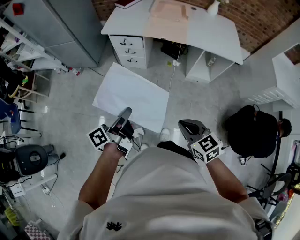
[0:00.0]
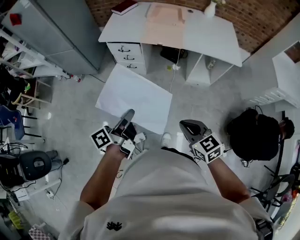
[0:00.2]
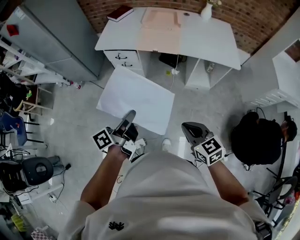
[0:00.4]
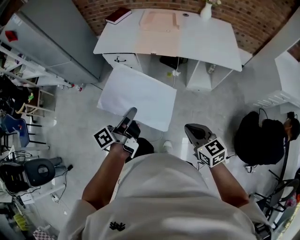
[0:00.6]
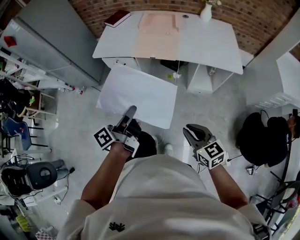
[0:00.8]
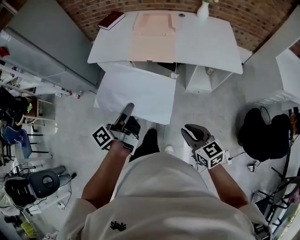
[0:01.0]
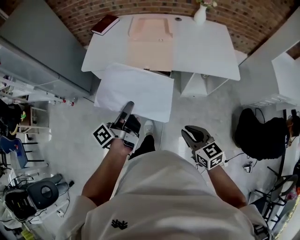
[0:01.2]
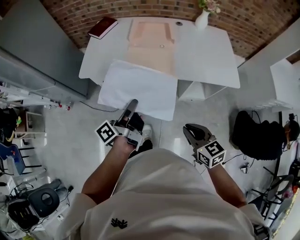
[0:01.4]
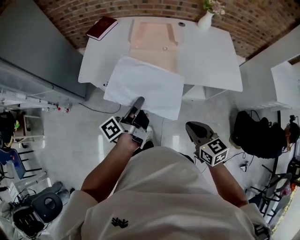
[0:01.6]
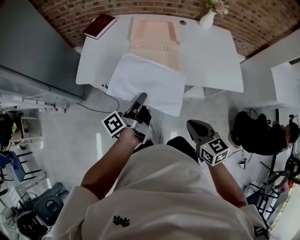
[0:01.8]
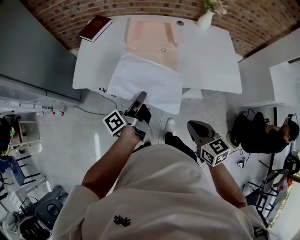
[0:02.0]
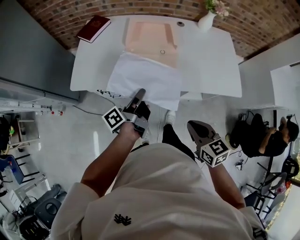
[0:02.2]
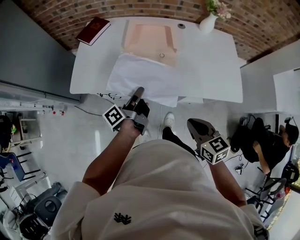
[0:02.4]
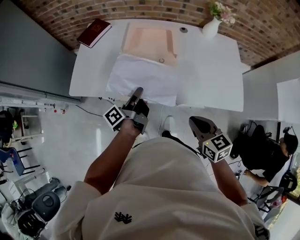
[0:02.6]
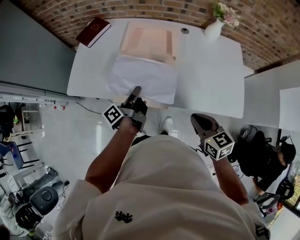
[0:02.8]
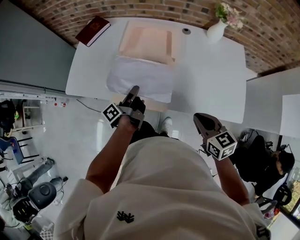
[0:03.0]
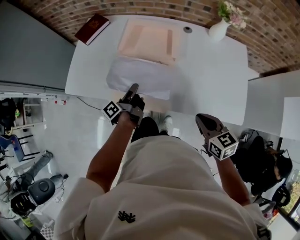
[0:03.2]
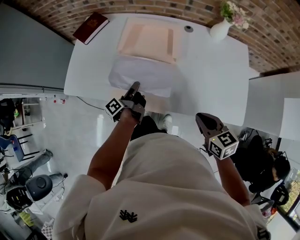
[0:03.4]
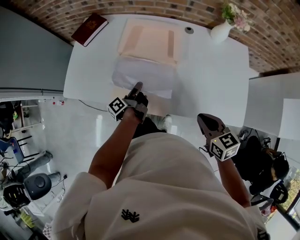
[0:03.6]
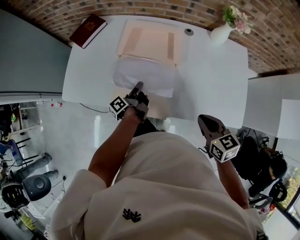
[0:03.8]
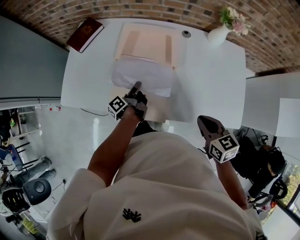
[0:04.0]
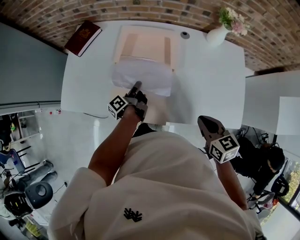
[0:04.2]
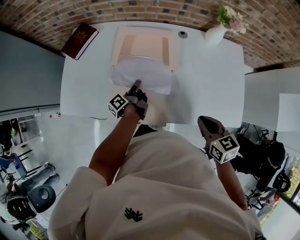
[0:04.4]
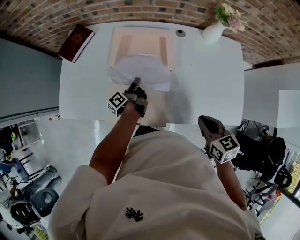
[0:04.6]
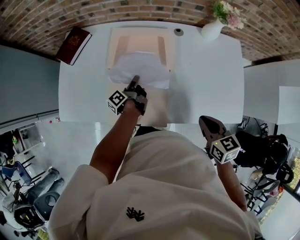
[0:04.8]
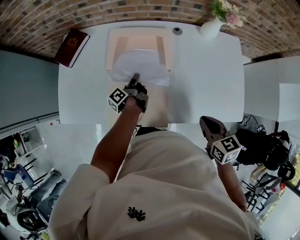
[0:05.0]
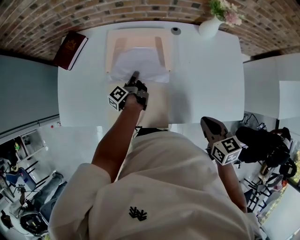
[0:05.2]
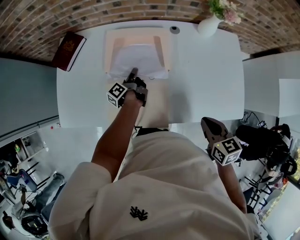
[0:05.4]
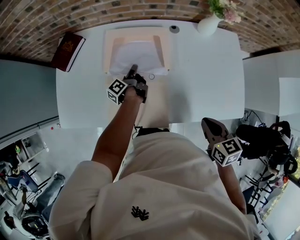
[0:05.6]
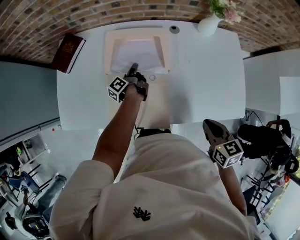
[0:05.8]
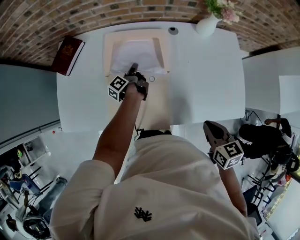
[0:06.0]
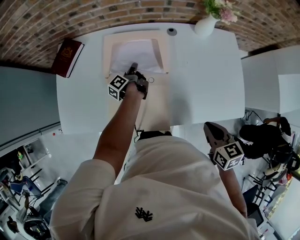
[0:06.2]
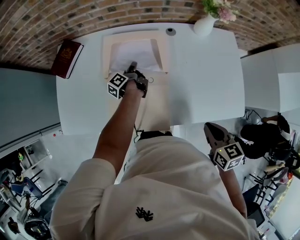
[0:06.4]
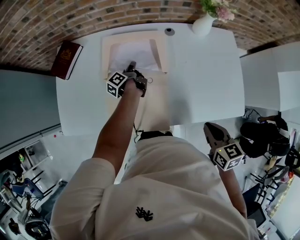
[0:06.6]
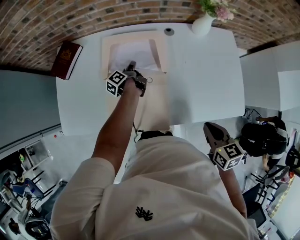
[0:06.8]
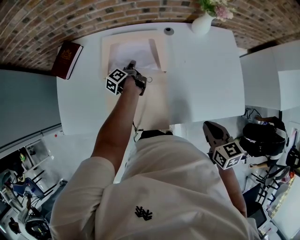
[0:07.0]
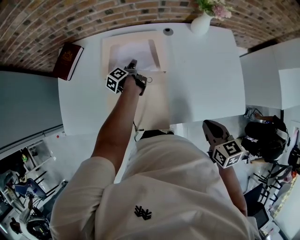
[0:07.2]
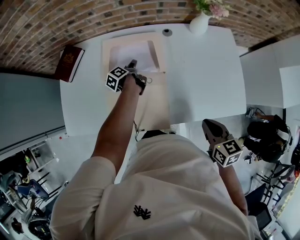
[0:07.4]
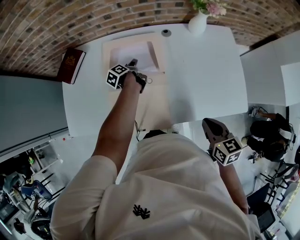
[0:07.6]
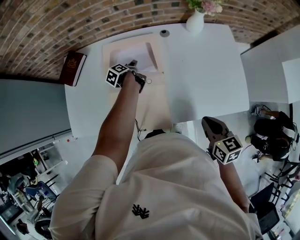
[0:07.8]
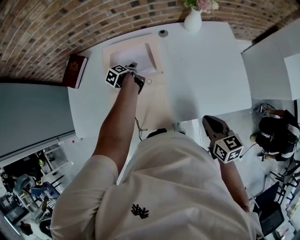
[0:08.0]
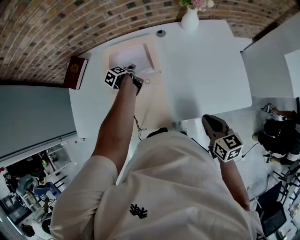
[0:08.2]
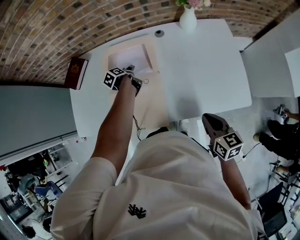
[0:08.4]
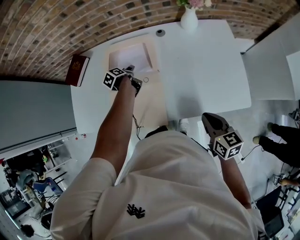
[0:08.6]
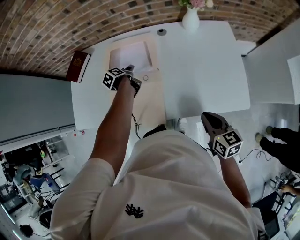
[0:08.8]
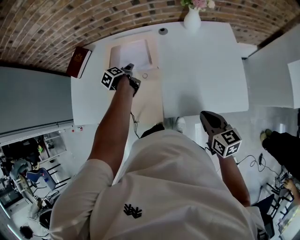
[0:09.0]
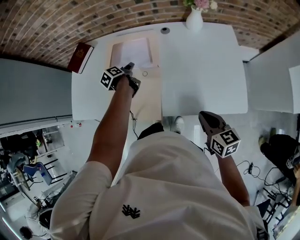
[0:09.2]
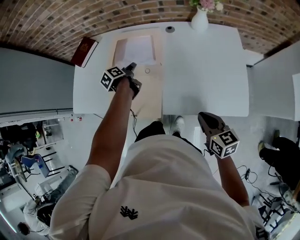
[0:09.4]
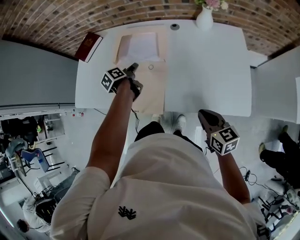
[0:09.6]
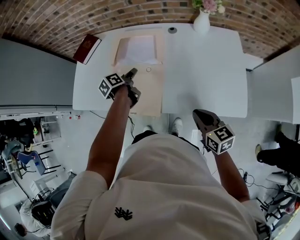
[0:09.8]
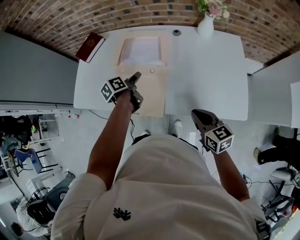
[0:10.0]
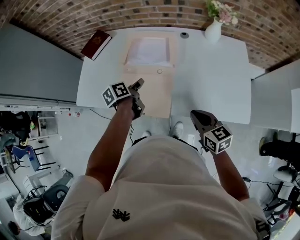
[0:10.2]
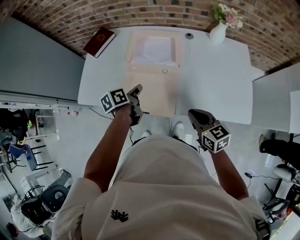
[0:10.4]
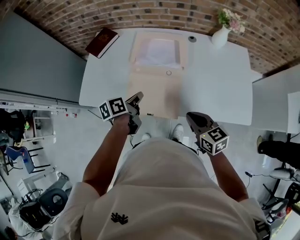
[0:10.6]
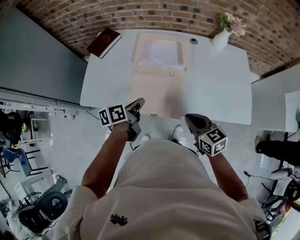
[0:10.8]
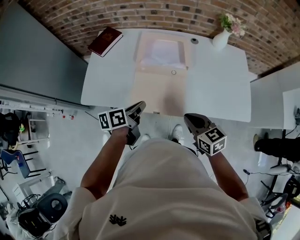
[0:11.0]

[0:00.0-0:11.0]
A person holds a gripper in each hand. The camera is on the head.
0:00.0 to 0:01.6: The right gripper moves about 40 cm.
0:01.6 to 0:03.2: The right gripper ends up approximately 35 cm from where it was.
0:03.2 to 0:04.8: The right gripper moves some 10 cm.
0:07.8 to 0:09.4: The right gripper changes place by some 10 cm.
0:09.4 to 0:11.0: The right gripper moves some 25 cm.

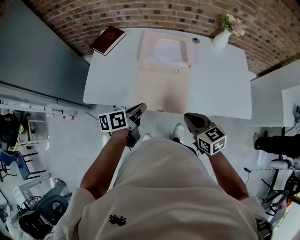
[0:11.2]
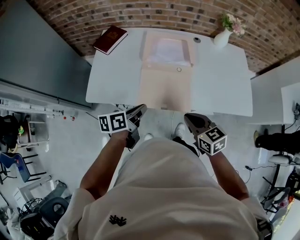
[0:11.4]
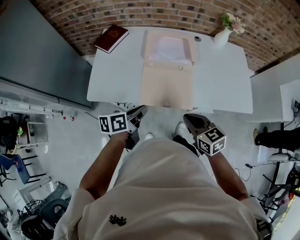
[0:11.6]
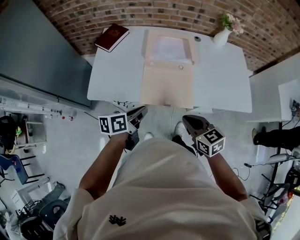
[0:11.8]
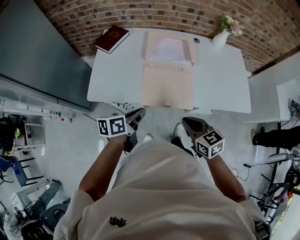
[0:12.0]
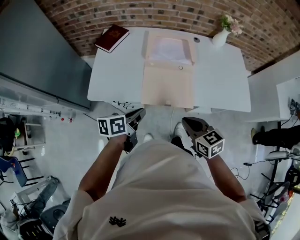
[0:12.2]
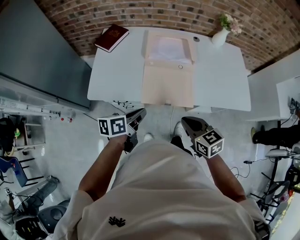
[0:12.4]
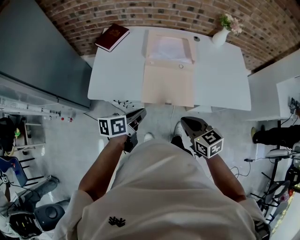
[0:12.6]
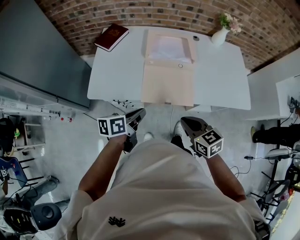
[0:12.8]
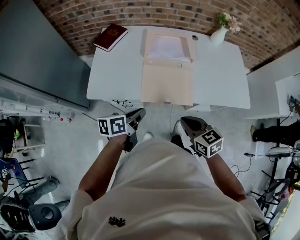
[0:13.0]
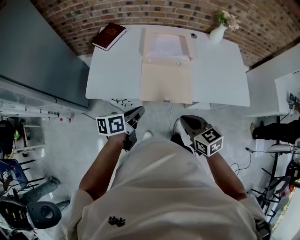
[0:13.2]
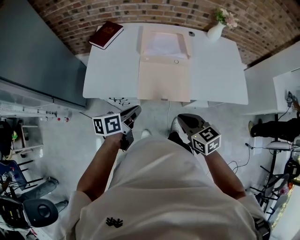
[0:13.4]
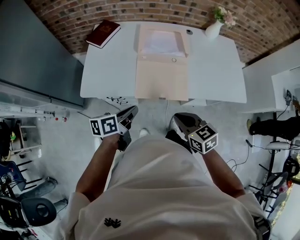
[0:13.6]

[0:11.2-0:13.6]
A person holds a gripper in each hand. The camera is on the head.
0:11.2 to 0:12.4: The right gripper moves some 10 cm.

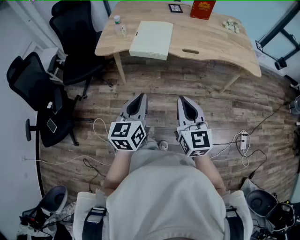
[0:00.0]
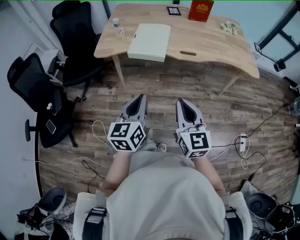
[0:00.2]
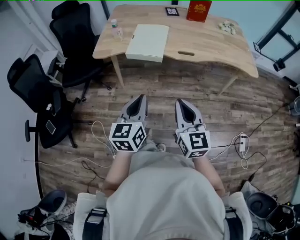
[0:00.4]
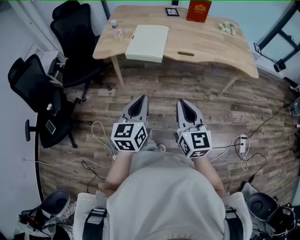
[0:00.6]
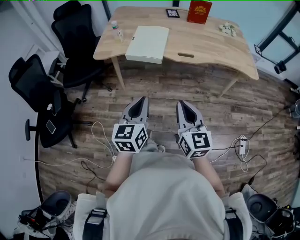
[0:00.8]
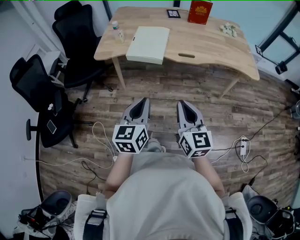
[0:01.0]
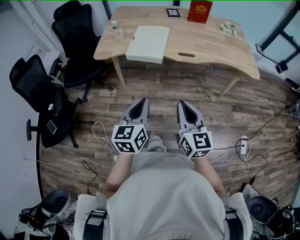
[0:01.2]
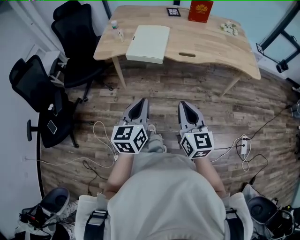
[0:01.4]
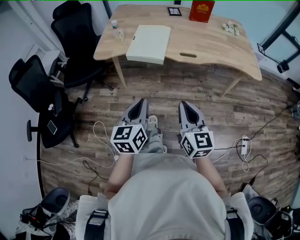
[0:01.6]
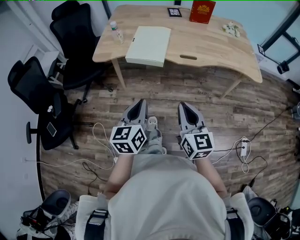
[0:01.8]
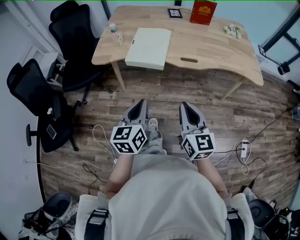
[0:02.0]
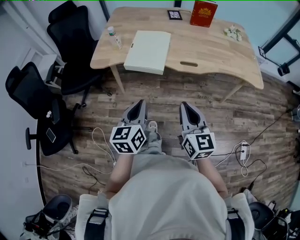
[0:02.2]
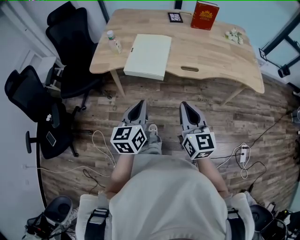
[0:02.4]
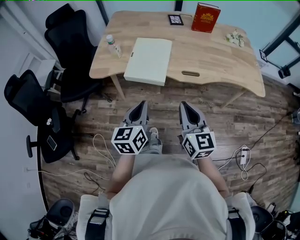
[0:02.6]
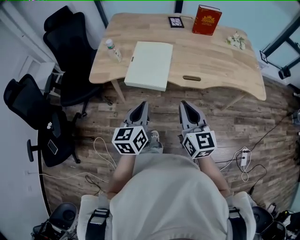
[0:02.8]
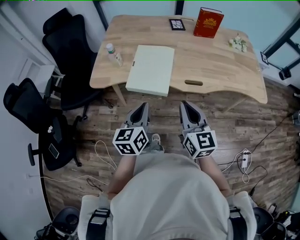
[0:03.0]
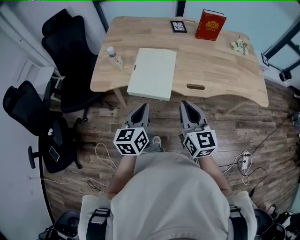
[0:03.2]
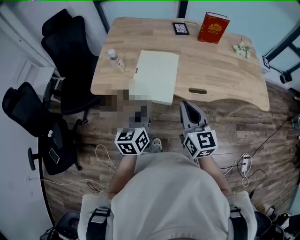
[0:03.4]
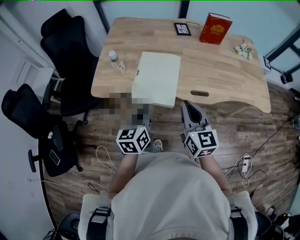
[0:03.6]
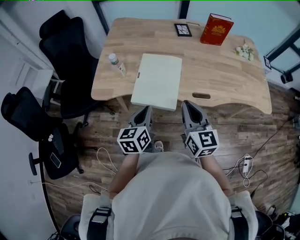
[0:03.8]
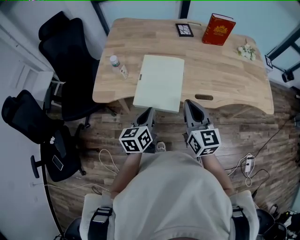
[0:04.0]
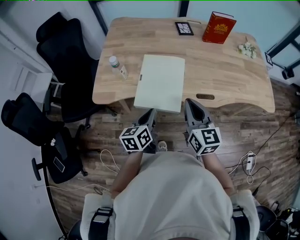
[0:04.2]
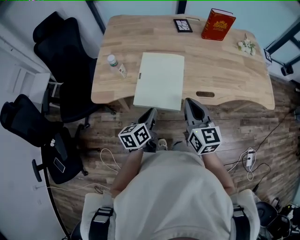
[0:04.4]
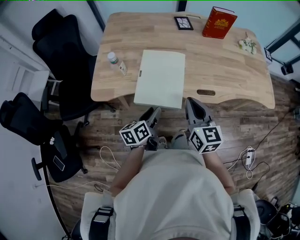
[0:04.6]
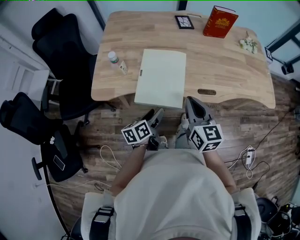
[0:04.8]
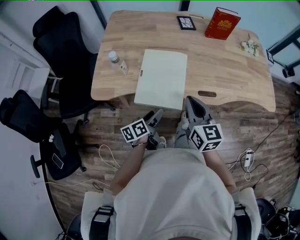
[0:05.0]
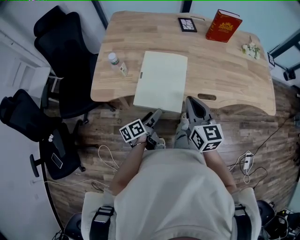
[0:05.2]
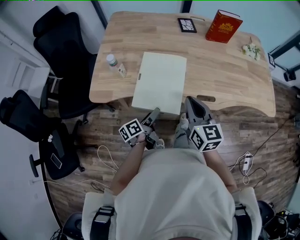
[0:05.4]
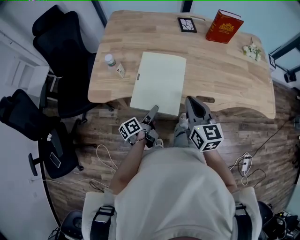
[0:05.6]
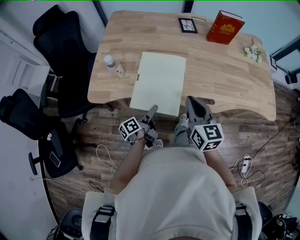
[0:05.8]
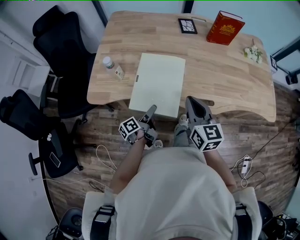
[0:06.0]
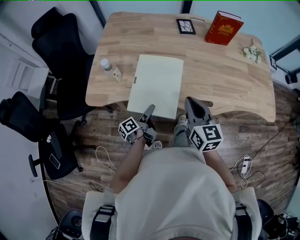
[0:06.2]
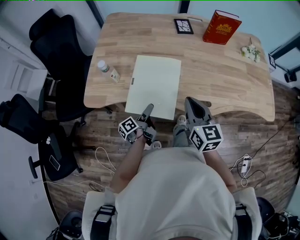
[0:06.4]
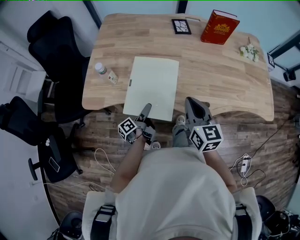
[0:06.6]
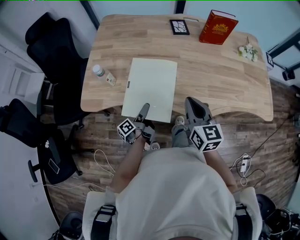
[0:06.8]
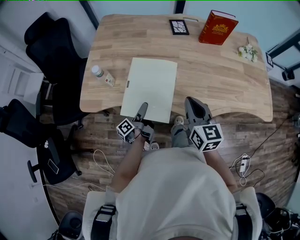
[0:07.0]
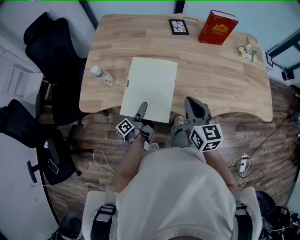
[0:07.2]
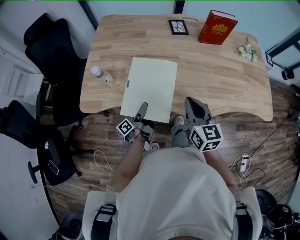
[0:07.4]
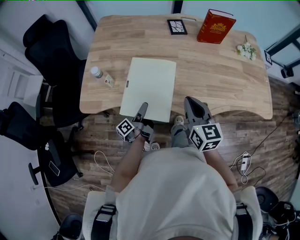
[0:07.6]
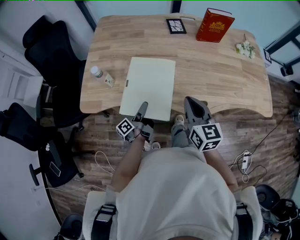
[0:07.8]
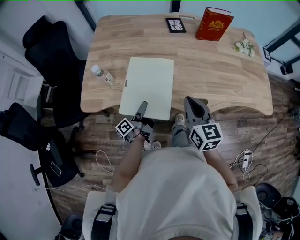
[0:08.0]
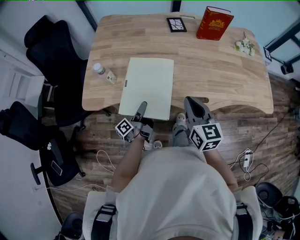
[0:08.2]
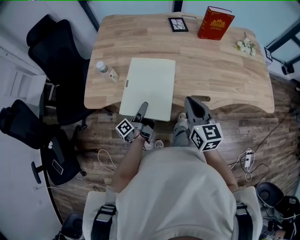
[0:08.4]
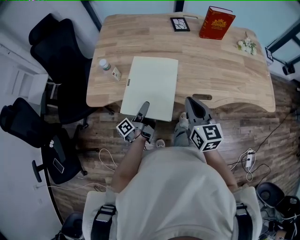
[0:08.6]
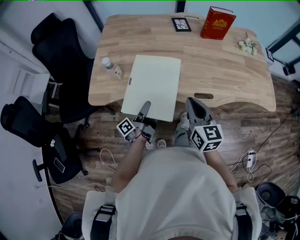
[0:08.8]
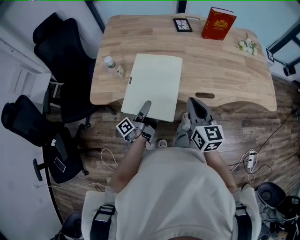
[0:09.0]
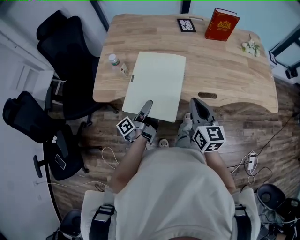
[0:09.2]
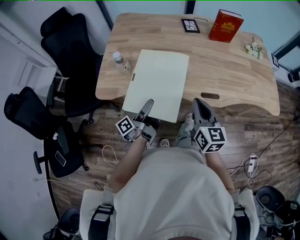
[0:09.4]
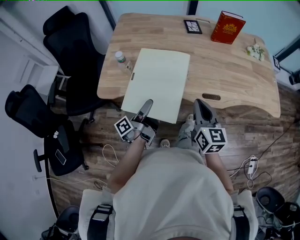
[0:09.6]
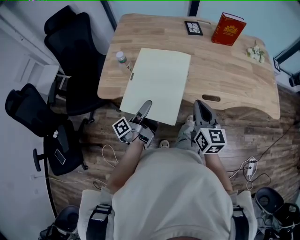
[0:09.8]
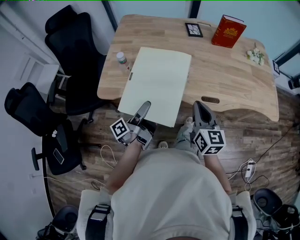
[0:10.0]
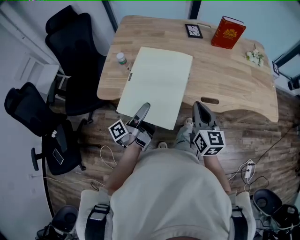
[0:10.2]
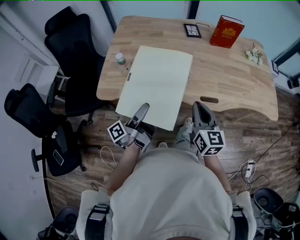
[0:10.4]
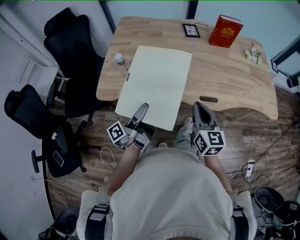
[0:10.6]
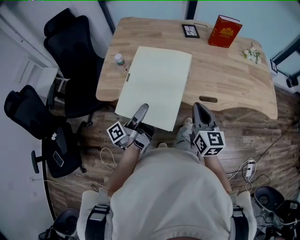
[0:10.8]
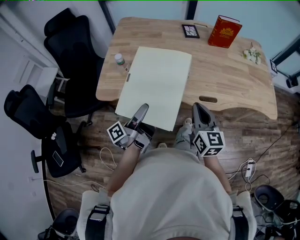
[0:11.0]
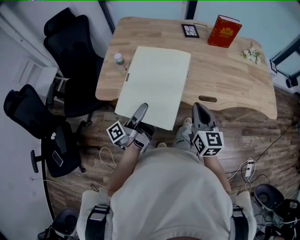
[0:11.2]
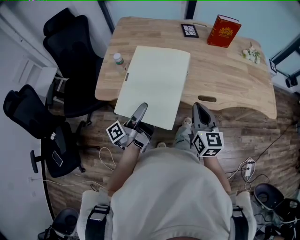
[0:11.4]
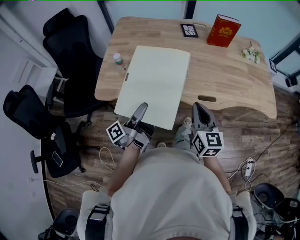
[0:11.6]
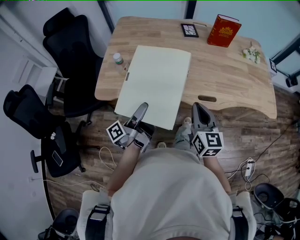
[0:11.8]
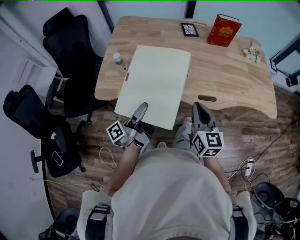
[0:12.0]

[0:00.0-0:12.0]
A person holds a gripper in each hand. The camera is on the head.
0:00.0 to 0:01.6: The grippers stay close to where they were, moving slightly.
0:01.6 to 0:03.0: The grippers both shift forward by approximately 20 cm.
0:03.0 to 0:04.4: The left gripper moves downward and forward, approximately 15 cm, and rotates roughly 20 degrees. Meanwhile the right gripper is displaced forward by approximately 10 cm.
0:04.4 to 0:06.0: The left gripper travels downward by approximately 10 cm, twists some 40 degrees counterclockwise, seen from behind, and opens. Meanwhile the right gripper shifts about 5 cm forward.
0:06.0 to 0:07.6: The left gripper moves approximately 5 cm.
0:07.6 to 0:09.0: The right gripper goes some 5 cm backward. The left gripper heads upward and backward, covering some 10 cm.
0:09.0 to 0:10.4: The left gripper moves upward, about 10 cm.
0:10.4 to 0:12.0: Both grippers stay put.
